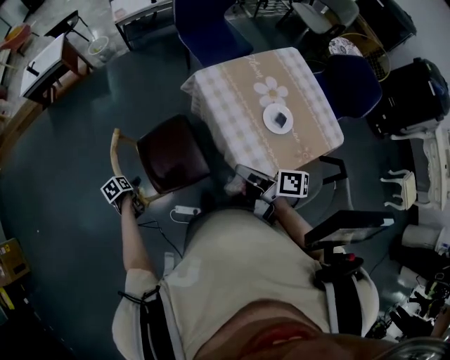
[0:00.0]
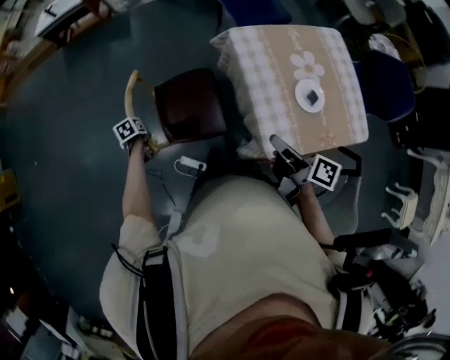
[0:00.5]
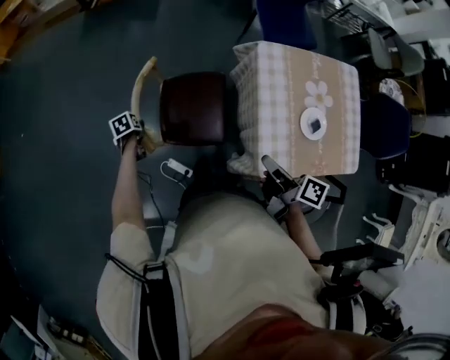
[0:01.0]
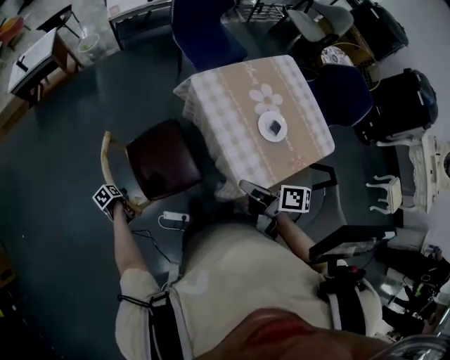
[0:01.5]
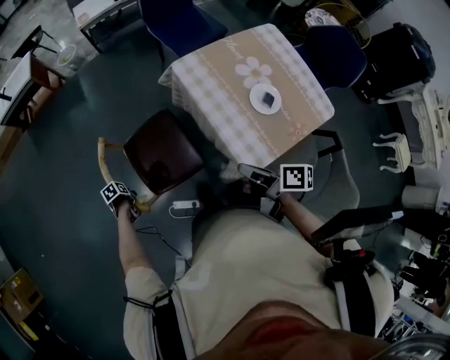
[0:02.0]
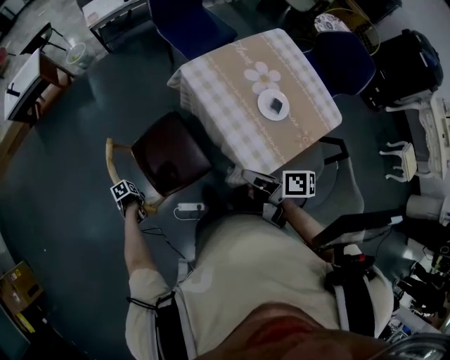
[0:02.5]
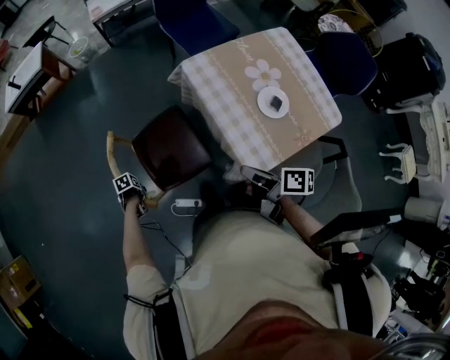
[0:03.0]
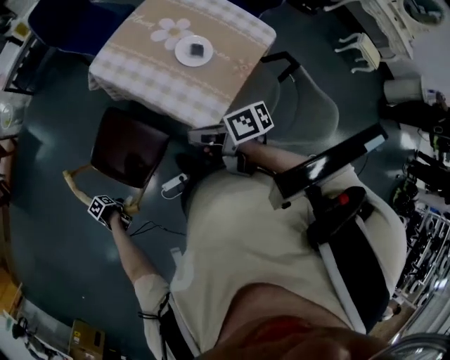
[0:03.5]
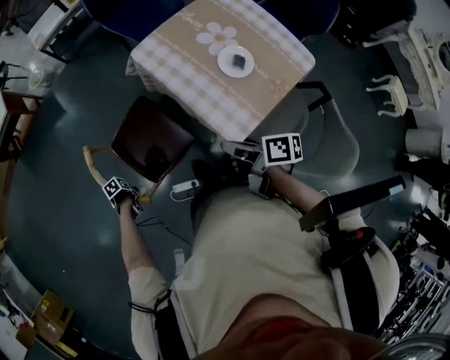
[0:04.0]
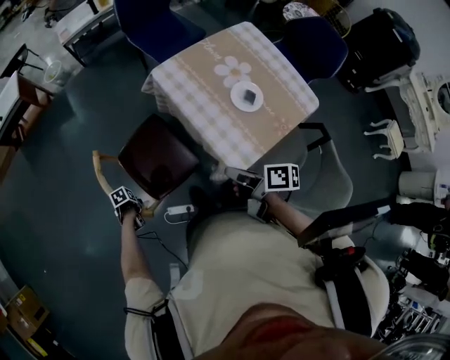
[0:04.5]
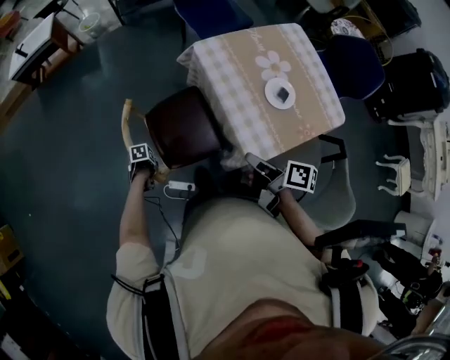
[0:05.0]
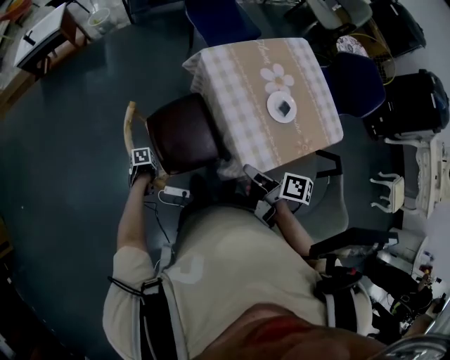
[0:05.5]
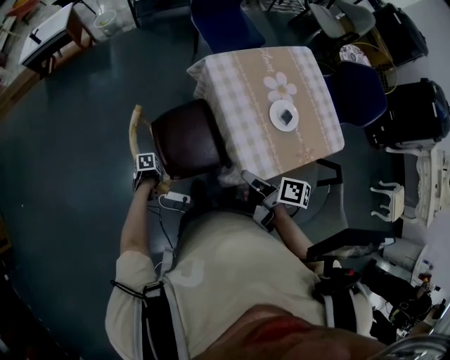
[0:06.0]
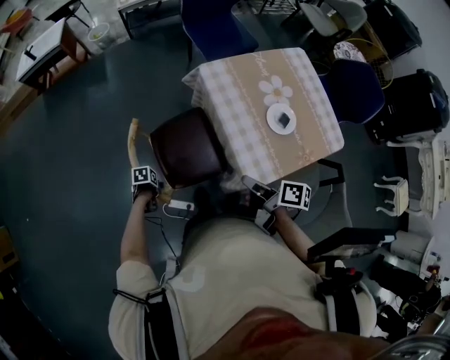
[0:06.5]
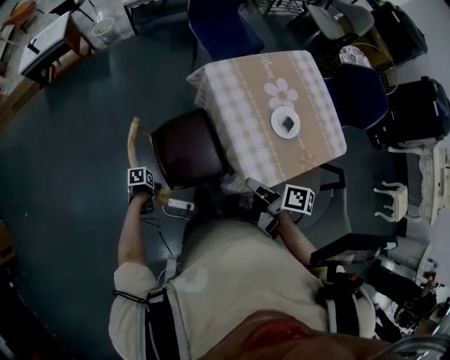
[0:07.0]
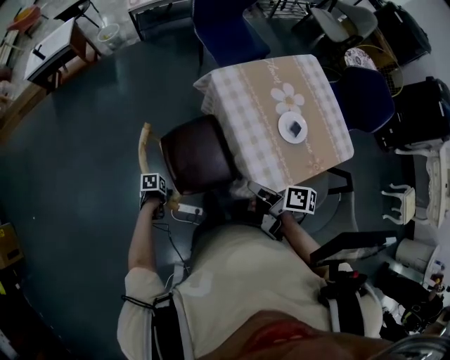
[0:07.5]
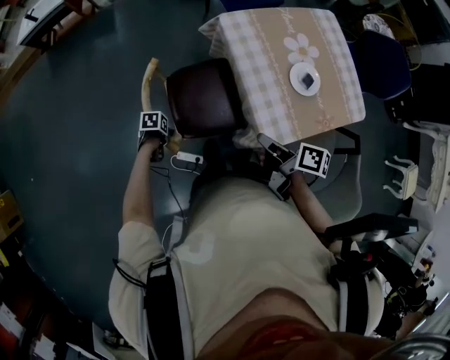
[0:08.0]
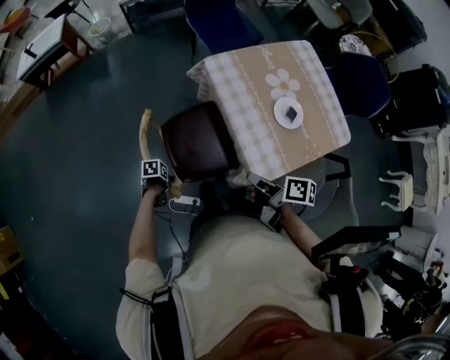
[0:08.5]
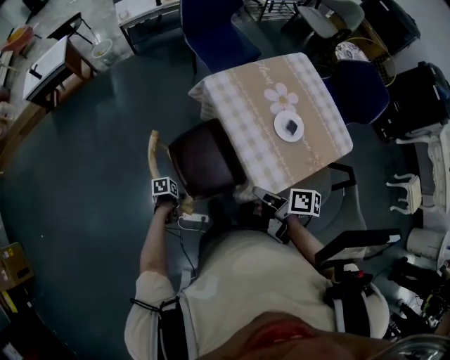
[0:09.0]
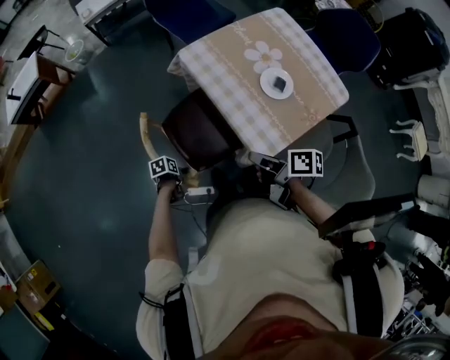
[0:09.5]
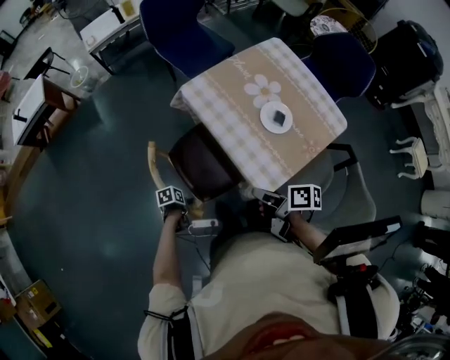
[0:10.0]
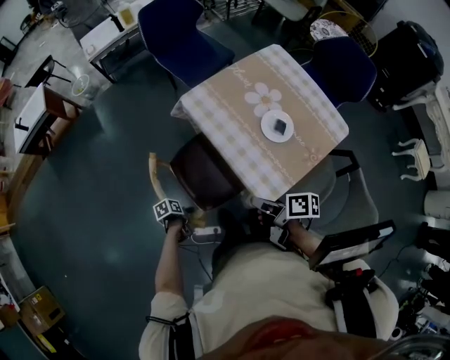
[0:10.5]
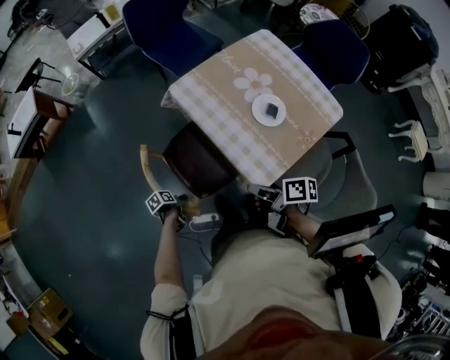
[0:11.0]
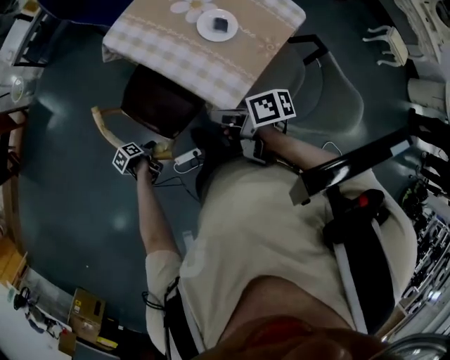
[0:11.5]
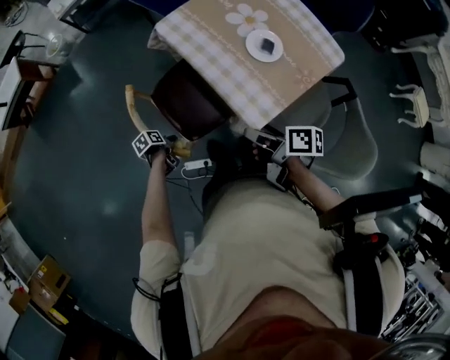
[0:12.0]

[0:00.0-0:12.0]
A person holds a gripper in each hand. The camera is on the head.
0:00.0 to 0:02.0: The left gripper shifts roughly 10 cm downward, turns by about 20 degrees, and closes its fingers.
0:02.0 to 0:04.0: The grippers stay close to where they were, moving slightly.
0:04.0 to 0:06.0: The left gripper moves about 10 cm.
0:06.0 to 0:08.0: The grippers stay close to where they were, moving slightly.
0:08.0 to 0:10.0: The left gripper moves some 10 cm.
0:10.0 to 0:12.0: The left gripper closes.

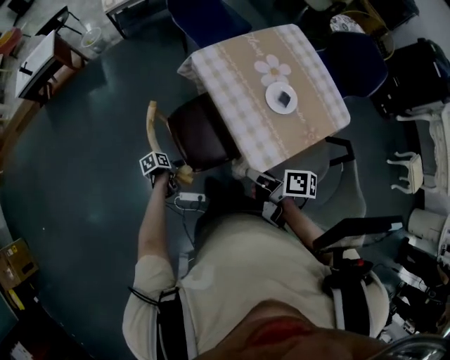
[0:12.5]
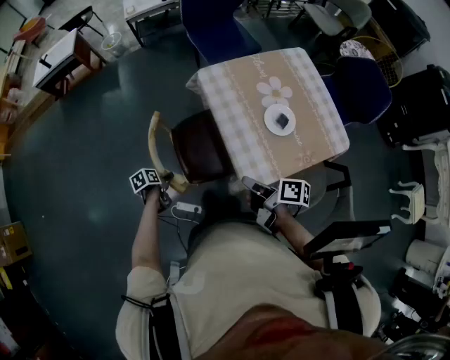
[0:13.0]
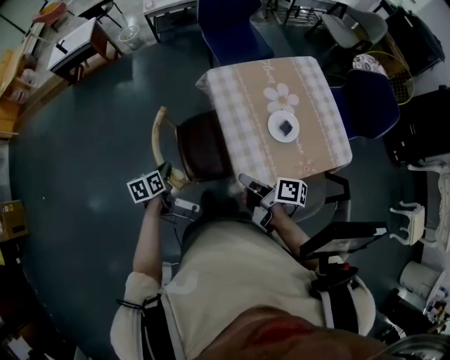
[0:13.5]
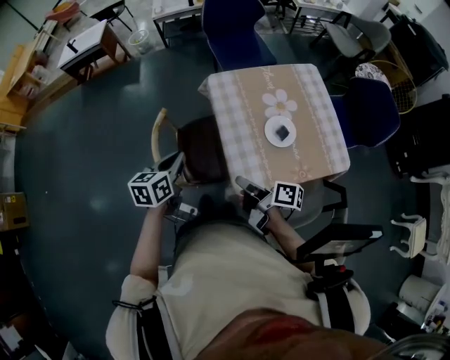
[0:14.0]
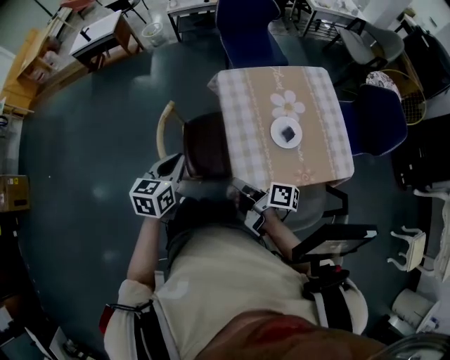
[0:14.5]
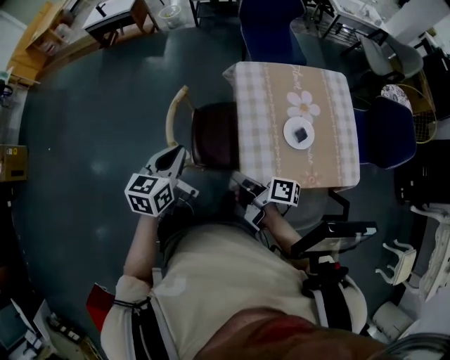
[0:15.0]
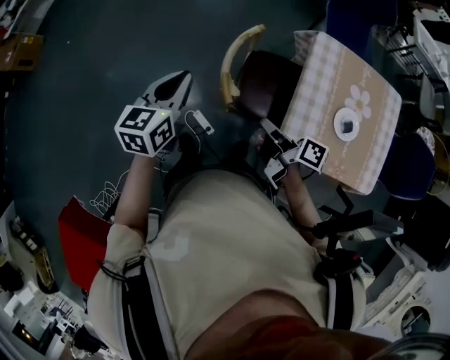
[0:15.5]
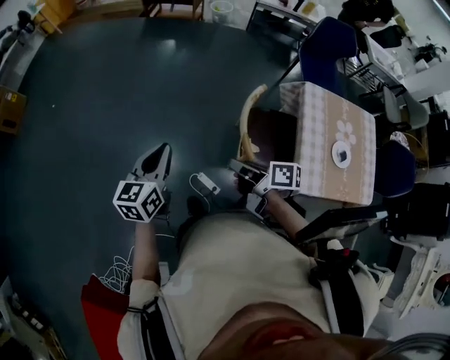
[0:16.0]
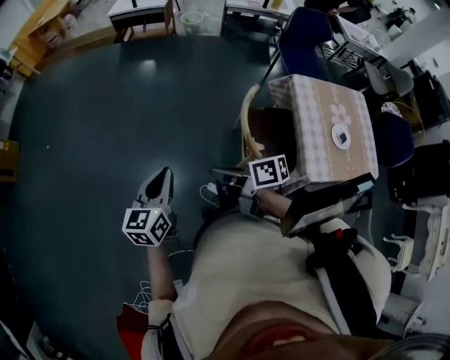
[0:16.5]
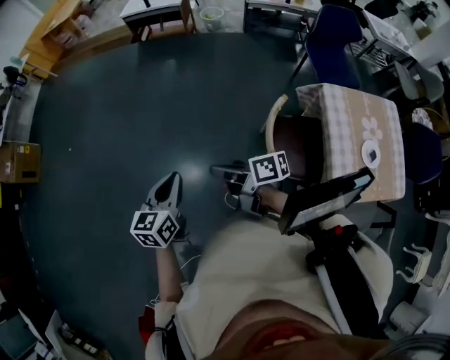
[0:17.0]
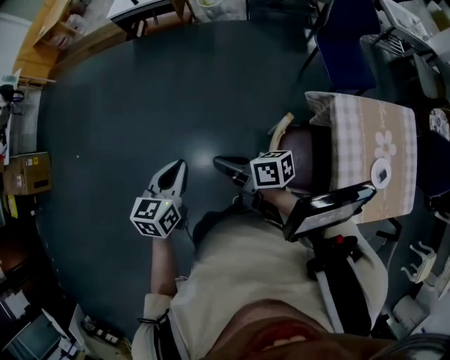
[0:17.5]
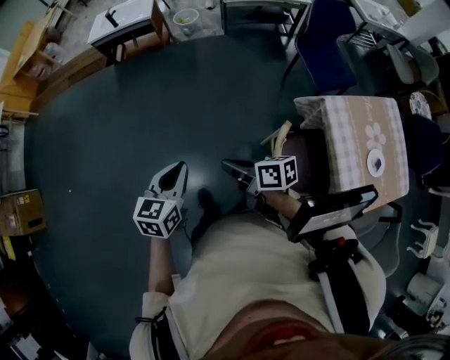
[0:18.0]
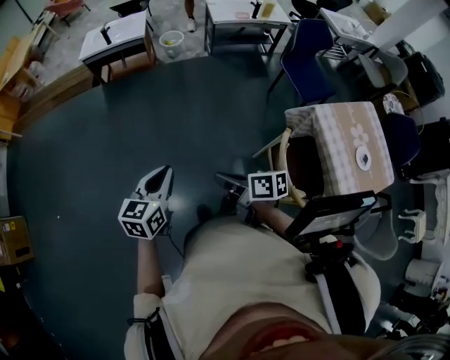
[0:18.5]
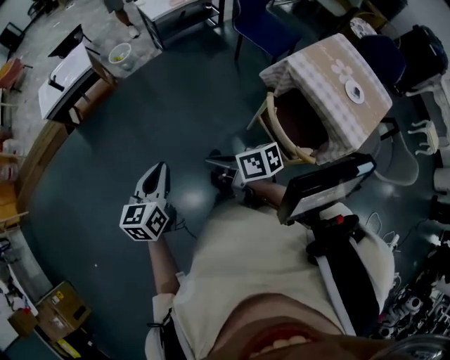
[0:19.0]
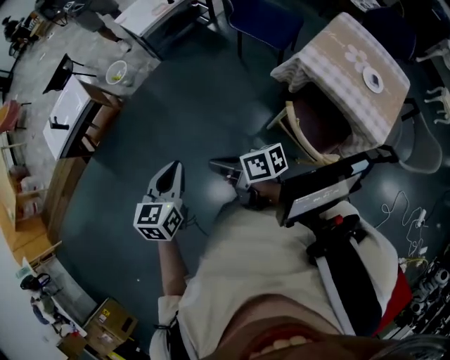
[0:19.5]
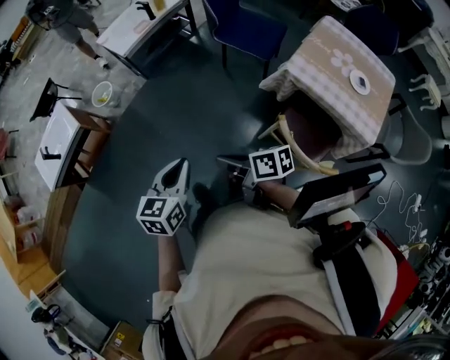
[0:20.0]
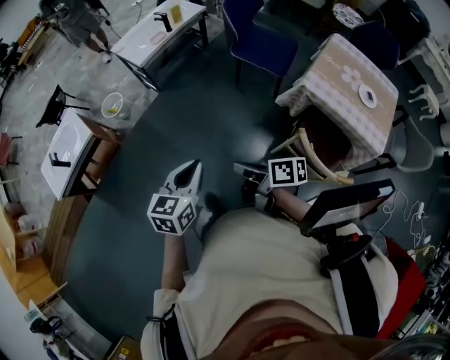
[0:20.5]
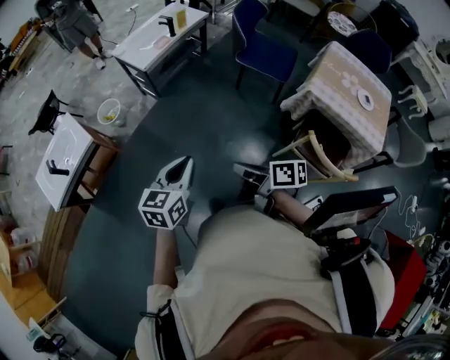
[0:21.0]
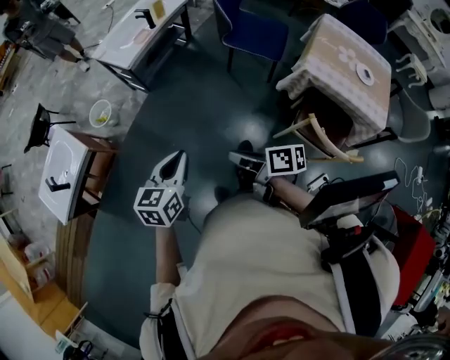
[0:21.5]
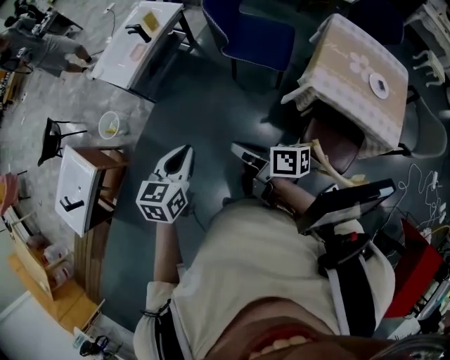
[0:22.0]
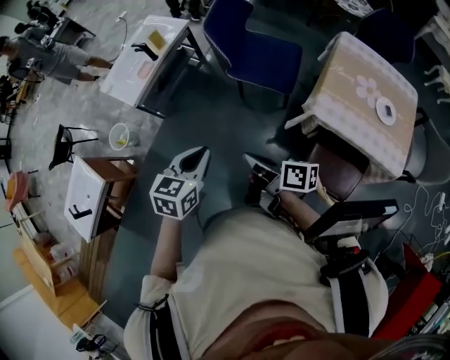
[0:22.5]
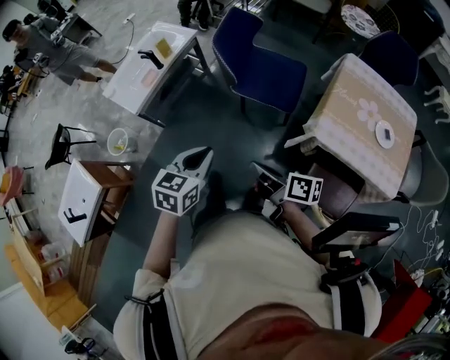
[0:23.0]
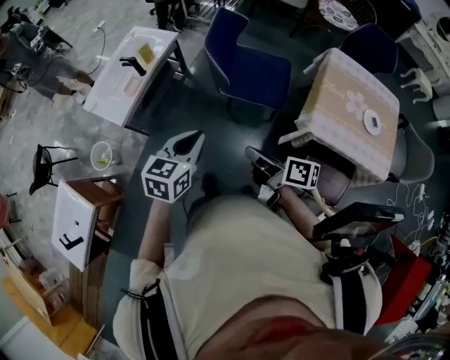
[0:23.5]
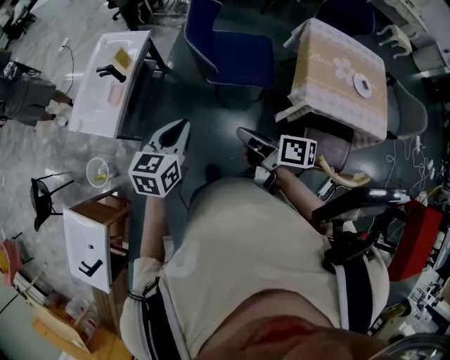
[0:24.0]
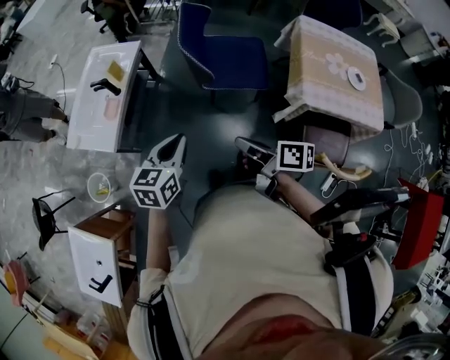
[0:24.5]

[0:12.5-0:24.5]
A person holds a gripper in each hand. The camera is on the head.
0:12.5 to 0:14.5: The left gripper shifts roughly 35 cm upward, rotates roughly 60 degrees, and closes.
0:14.5 to 0:16.5: Both grippers are carried to the left, roughly 50 cm. The left gripper rotates about 20 degrees. Meanwhile the right gripper turns by some 40 degrees.
0:16.5 to 0:18.5: The two grippers go some 40 cm forward. The right gripper rotates some 20 degrees, while the left gripper rotates roughly 20 degrees.
0:18.5 to 0:20.5: The left gripper ends up some 35 cm from where it was, and turns by roughly 40 degrees, while the right gripper changes place by approximately 30 cm, and changes its angle by roughly 40 degrees.
0:20.5 to 0:22.5: Both grippers move forward and to the right, roughly 30 cm.
0:22.5 to 0:24.5: The two grippers go about 20 cm forward and to the left. The right gripper turns by about 20 degrees.

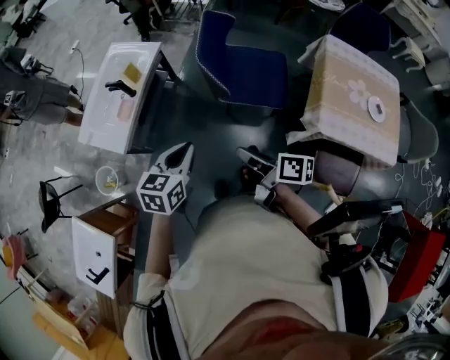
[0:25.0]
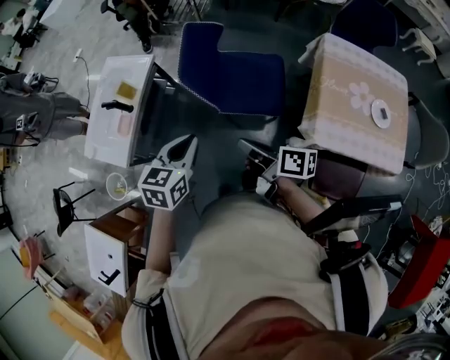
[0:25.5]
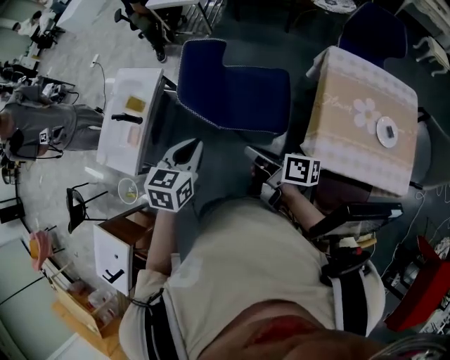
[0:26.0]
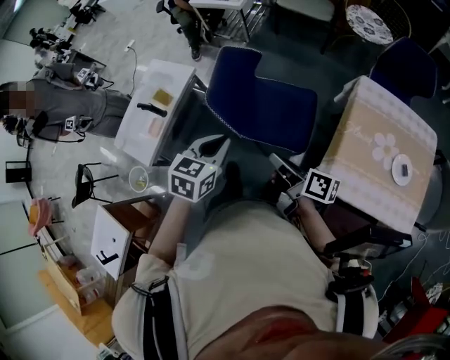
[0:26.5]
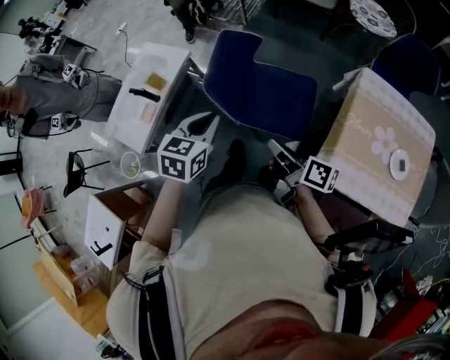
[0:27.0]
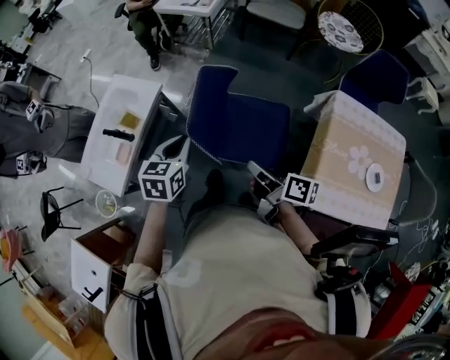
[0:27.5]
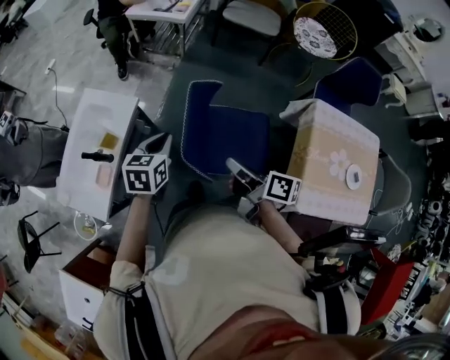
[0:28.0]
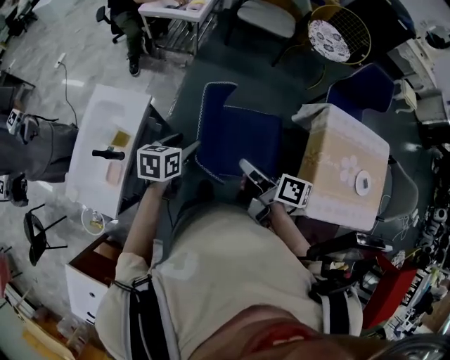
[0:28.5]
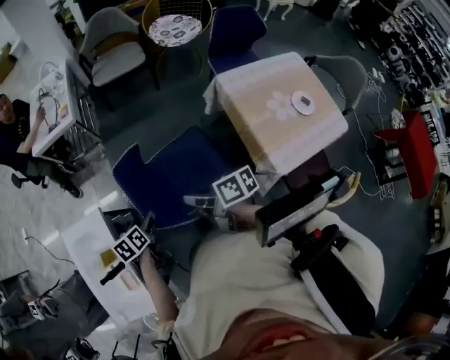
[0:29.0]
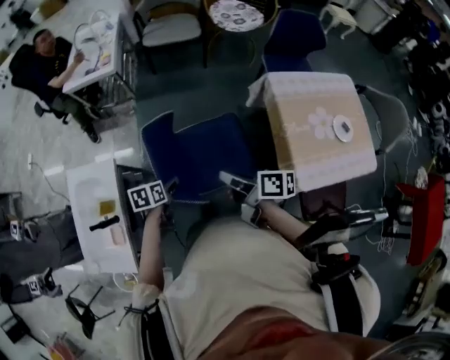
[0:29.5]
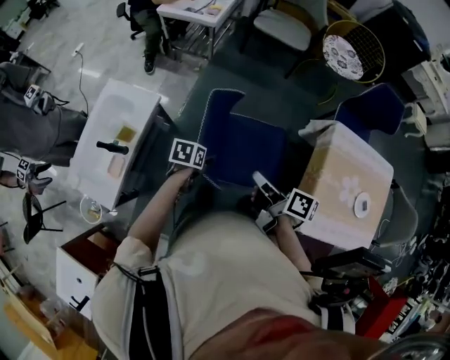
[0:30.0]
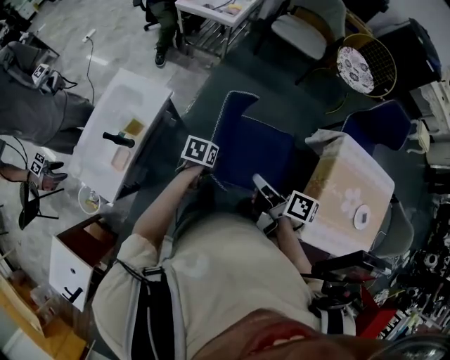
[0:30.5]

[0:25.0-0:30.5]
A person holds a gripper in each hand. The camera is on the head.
0:25.0 to 0:27.0: The left gripper goes approximately 25 cm forward and to the right; the right gripper moves to the right and forward, approximately 20 cm.
0:27.0 to 0:28.5: The right gripper heads forward and to the left, covering about 20 cm. Meanwhile the left gripper goes roughly 25 cm forward, to the left and downward, rotates roughly 20 degrees, and opens.
0:28.5 to 0:30.5: The right gripper reaches approximately 10 cm to the right, then returns, while the left gripper travels downward by some 15 cm.
